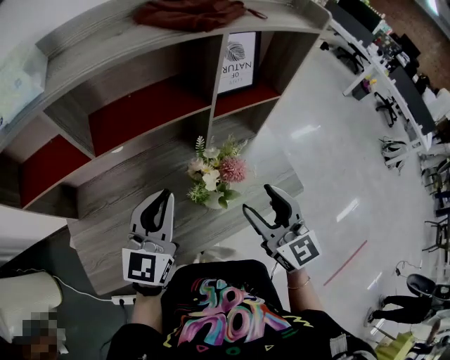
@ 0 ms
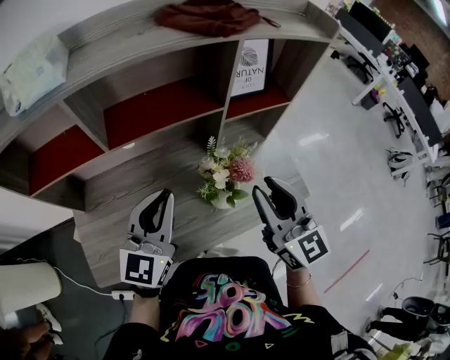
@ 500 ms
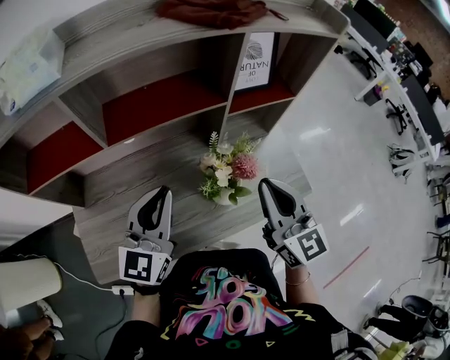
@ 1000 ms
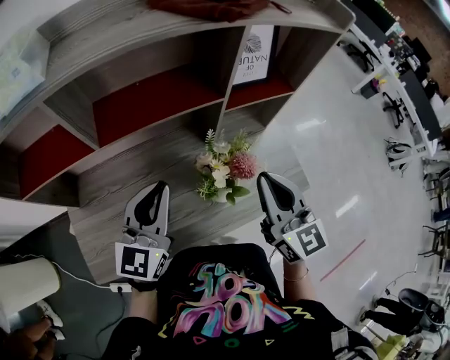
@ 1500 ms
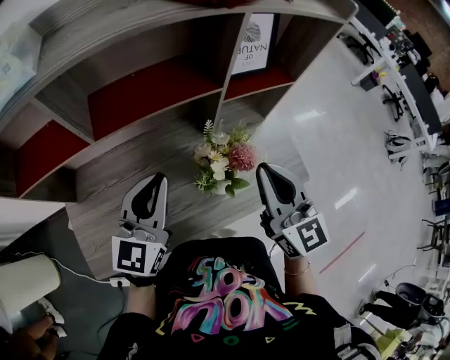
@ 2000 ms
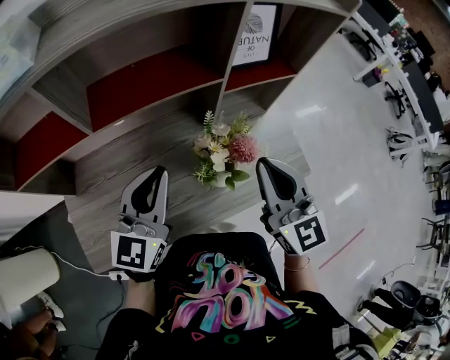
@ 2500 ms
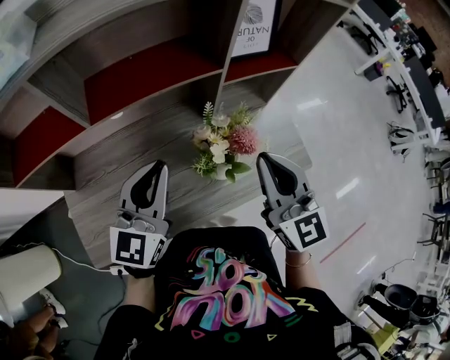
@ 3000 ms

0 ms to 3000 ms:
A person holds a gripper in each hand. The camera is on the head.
0 ms to 1500 ms: The right gripper closes its fingers.
1500 ms to 3000 ms: There are only small adjustments of the grippers.

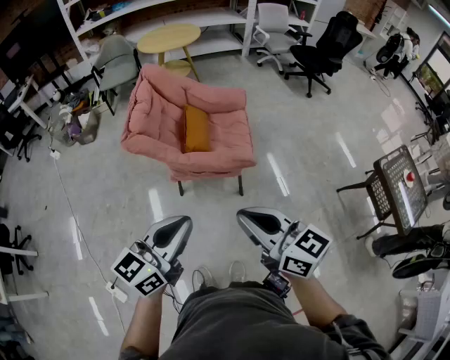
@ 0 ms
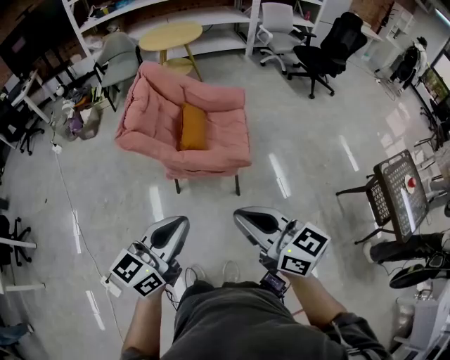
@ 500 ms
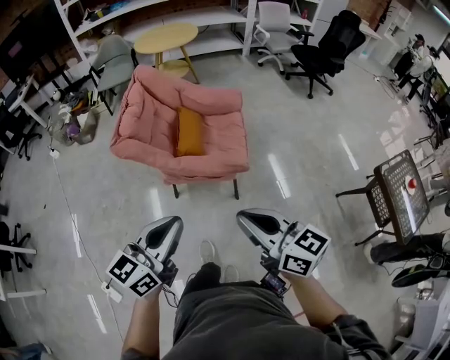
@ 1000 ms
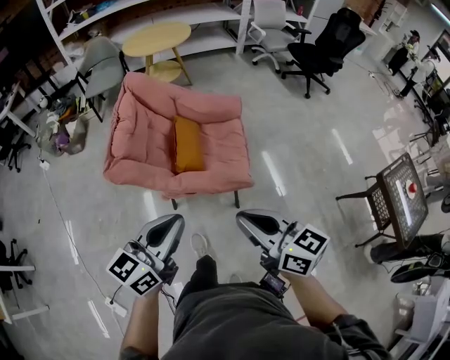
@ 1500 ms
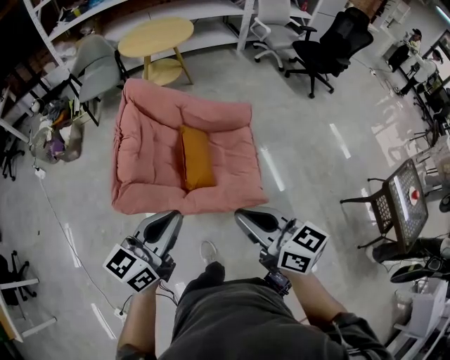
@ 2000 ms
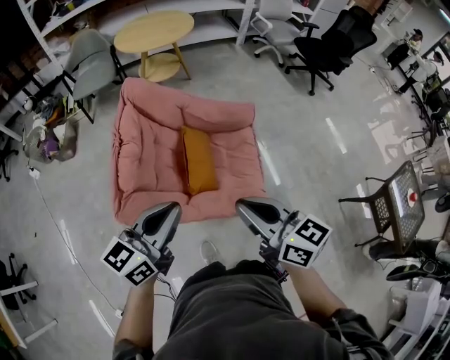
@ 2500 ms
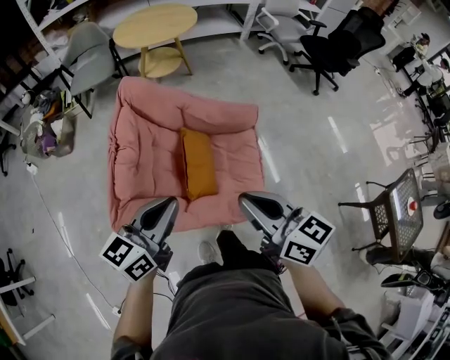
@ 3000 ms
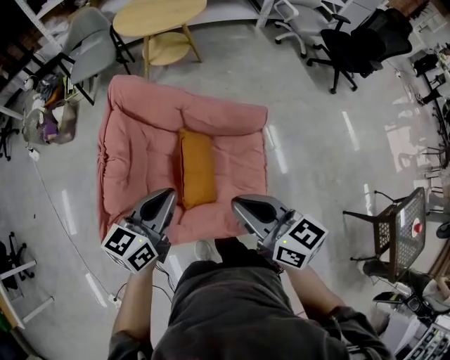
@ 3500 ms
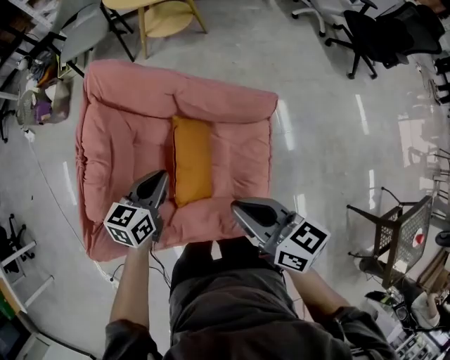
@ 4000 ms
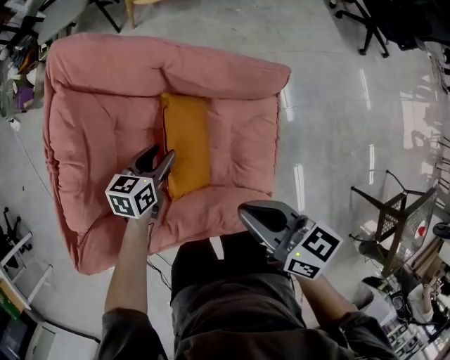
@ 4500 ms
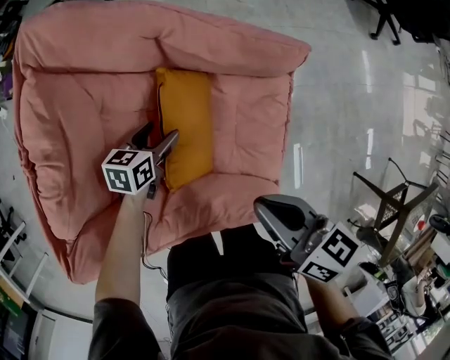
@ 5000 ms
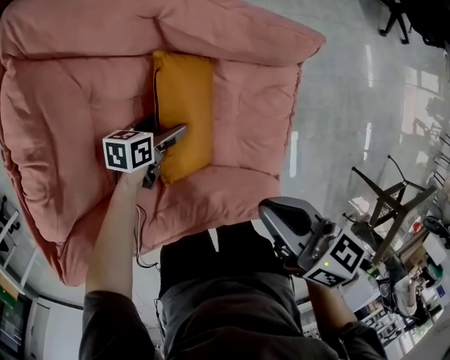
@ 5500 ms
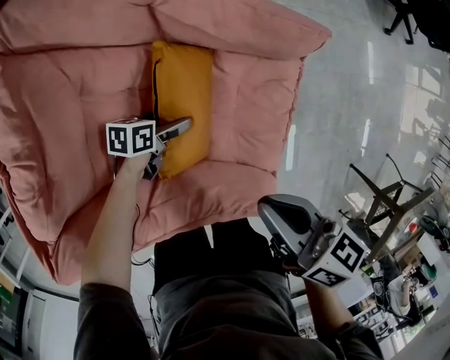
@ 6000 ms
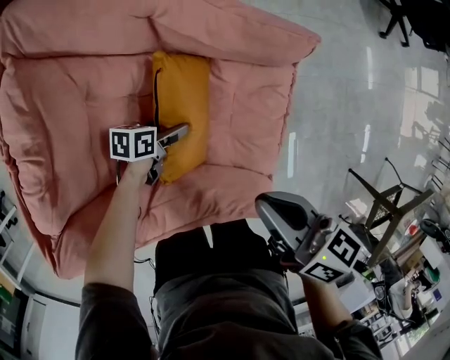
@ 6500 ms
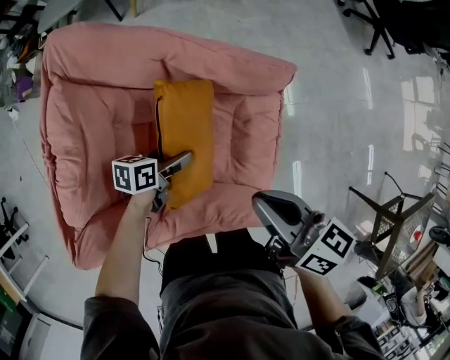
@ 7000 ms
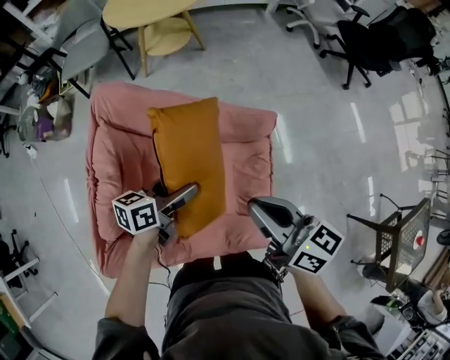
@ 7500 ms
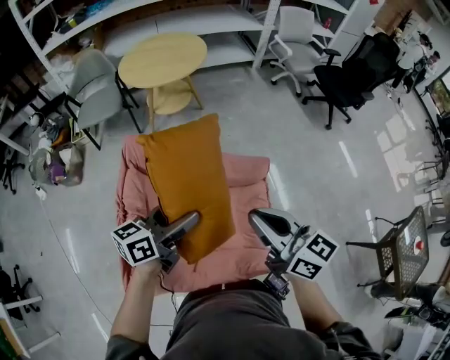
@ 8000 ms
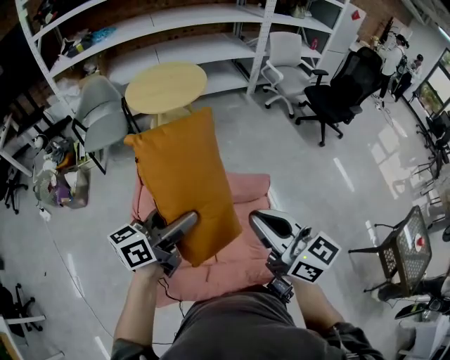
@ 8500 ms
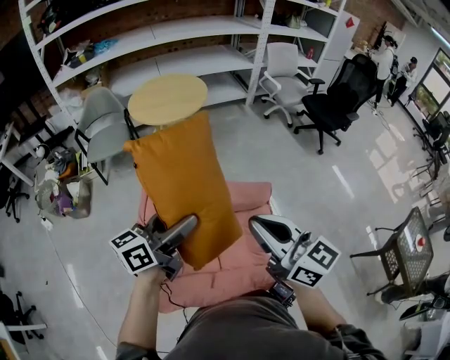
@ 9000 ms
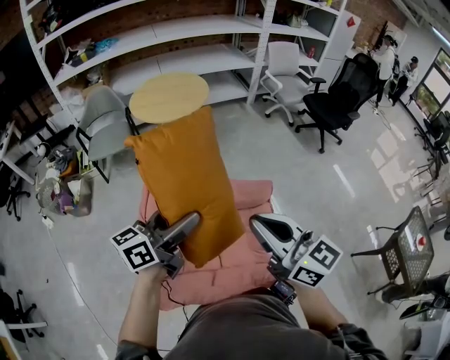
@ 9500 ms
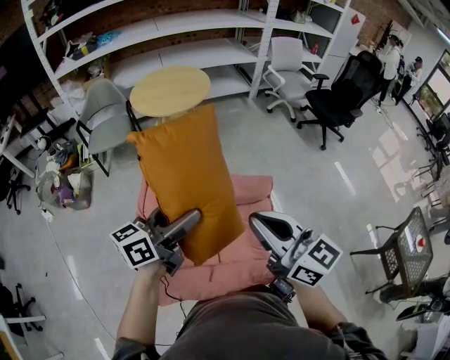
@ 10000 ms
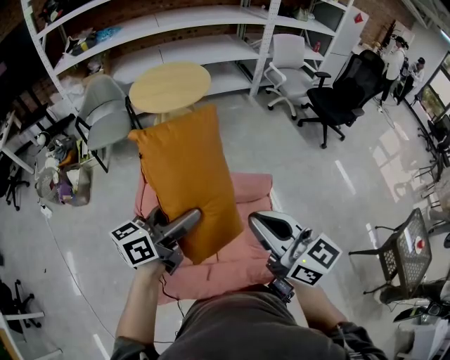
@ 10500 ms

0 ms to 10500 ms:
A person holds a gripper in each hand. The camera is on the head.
0 ms to 2000 ms: The two grippers go approximately 30 cm forward.
2000 ms to 4000 ms: Both grippers move forward and downward, about 40 cm. The left gripper changes its angle by approximately 30 degrees.
4000 ms to 6500 ms: The left gripper moves downward, some 30 cm, turns by roughly 40 degrees, and opens its fingers. Meanwhile the right gripper heads downward, covering approximately 15 cm.
6500 ms to 8500 ms: The left gripper goes approximately 60 cm upward, and tips its fingers upward by approximately 50 degrees, while the right gripper moves upward, about 40 cm, and changes its angle by roughly 40 degrees.
8500 ms to 10500 ms: There are only small adjustments of the grippers.

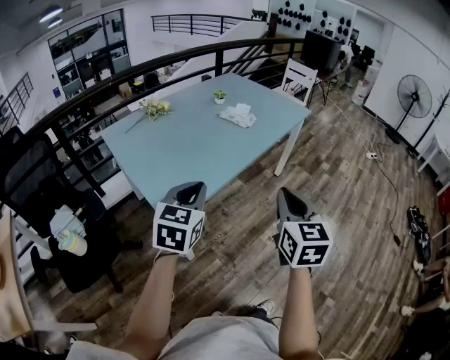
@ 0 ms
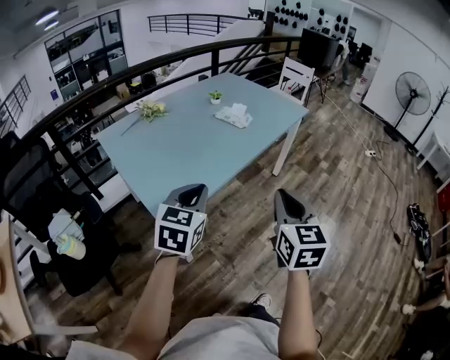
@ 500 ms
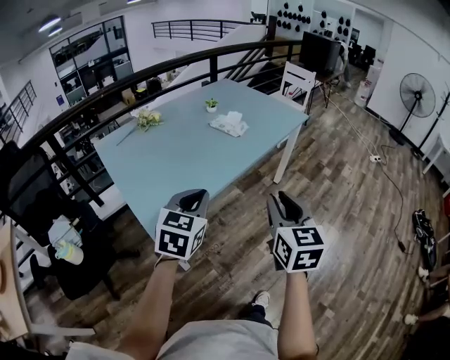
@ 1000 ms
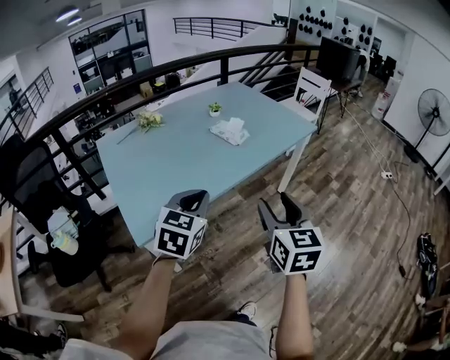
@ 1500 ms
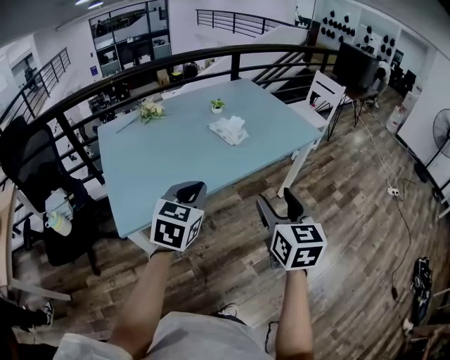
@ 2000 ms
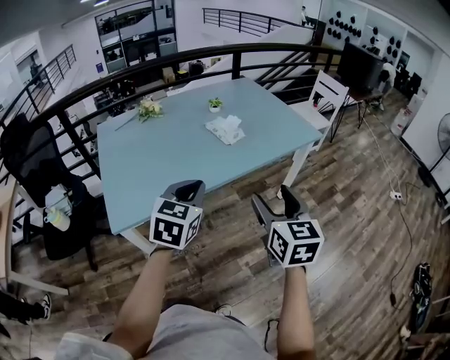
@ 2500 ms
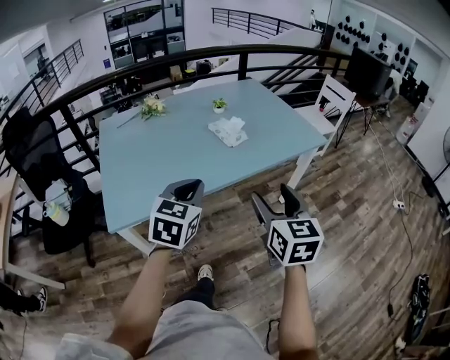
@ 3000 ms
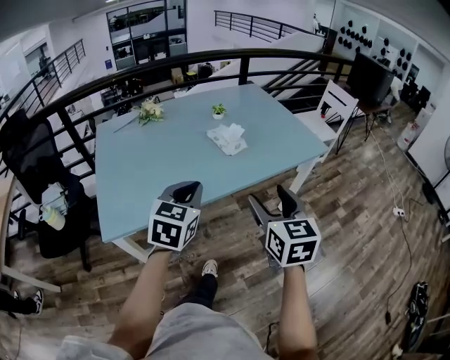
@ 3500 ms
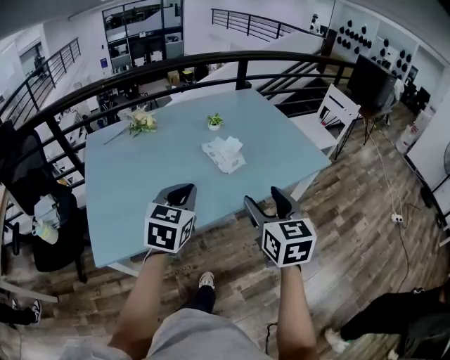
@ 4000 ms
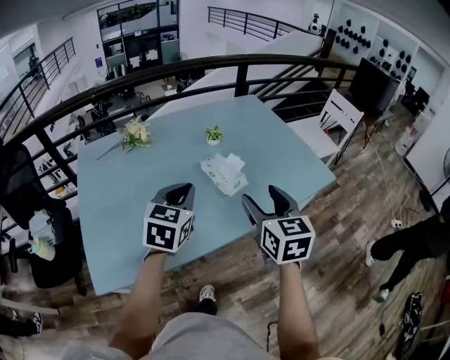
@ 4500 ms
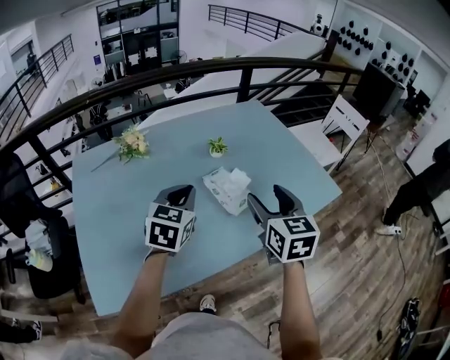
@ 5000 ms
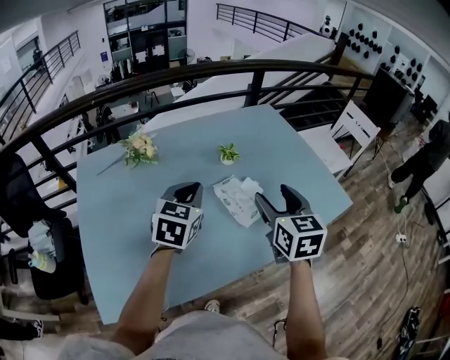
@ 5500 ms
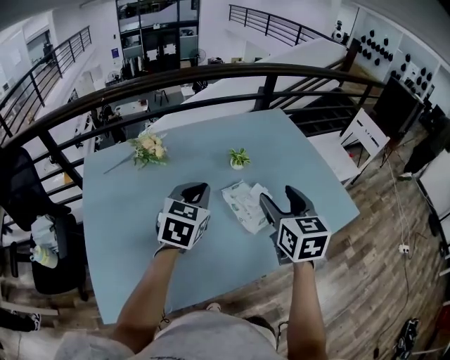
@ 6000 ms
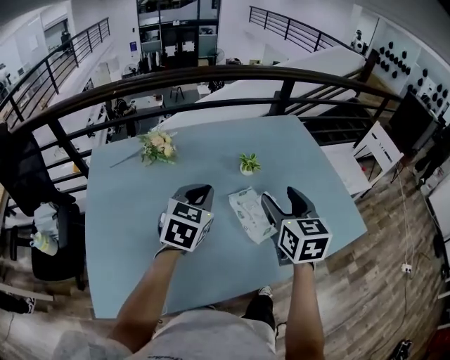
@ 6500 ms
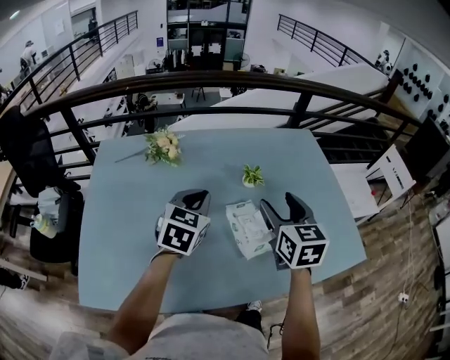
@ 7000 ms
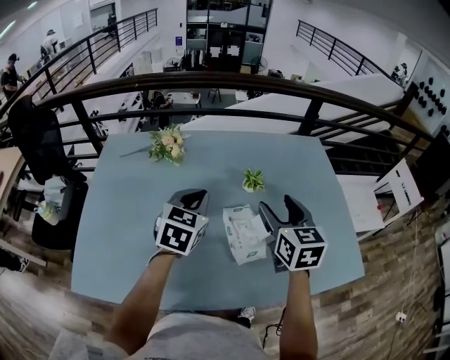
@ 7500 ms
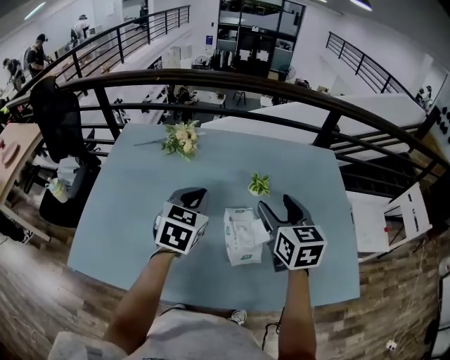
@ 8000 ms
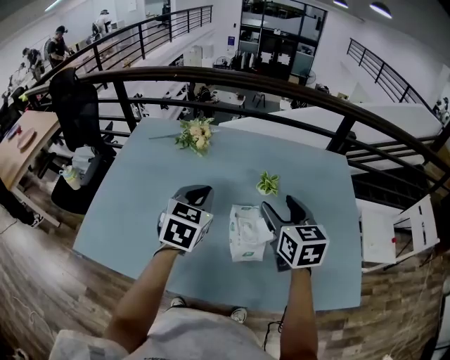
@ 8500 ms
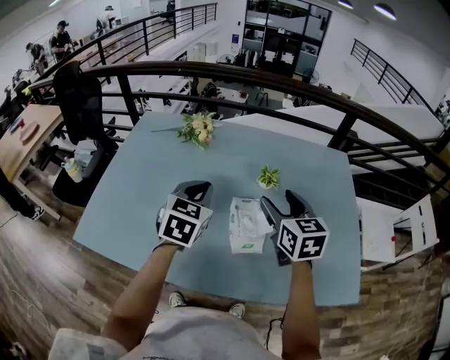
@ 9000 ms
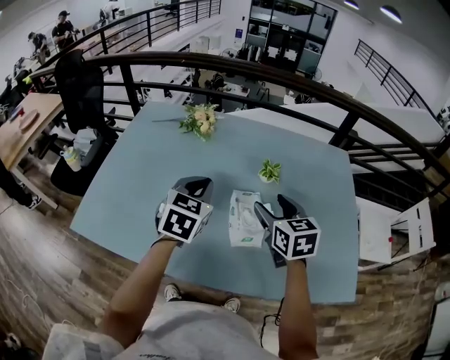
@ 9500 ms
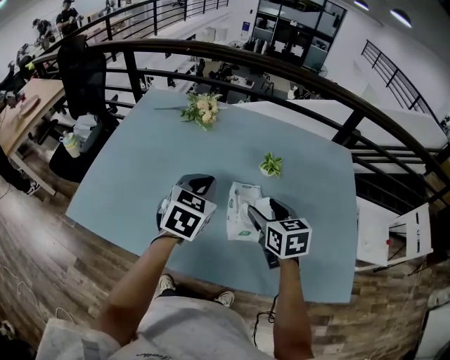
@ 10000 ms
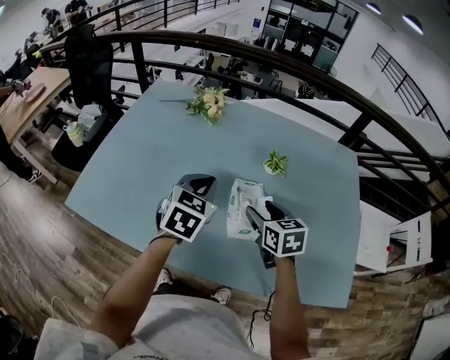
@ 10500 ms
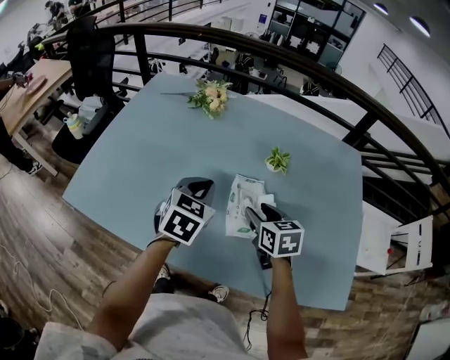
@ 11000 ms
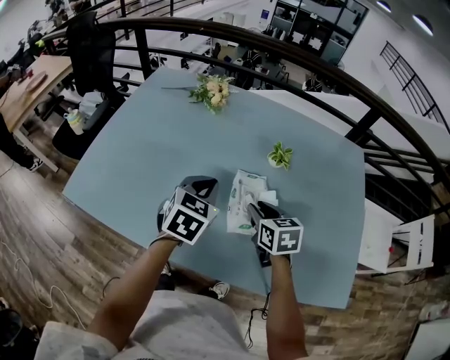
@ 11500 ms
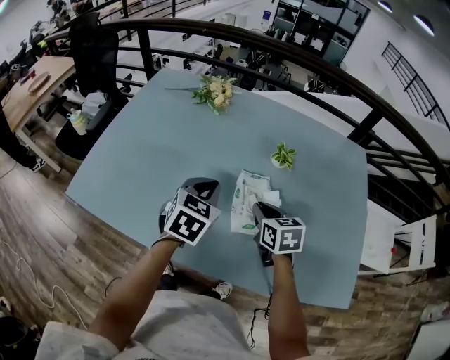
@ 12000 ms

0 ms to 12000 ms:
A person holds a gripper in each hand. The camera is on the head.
0 ms to 2000 ms: The left gripper shifts approximately 25 cm to the right and forward. Meanwhile the right gripper is displaced forward and to the right by some 25 cm, and opens its fingers.
2000 ms to 4000 ms: The two grippers go approximately 20 cm forward.
4000 ms to 6000 ms: Both grippers travel together forward, roughly 25 cm.
6000 ms to 8000 ms: The left gripper turns by about 30 degrees. The right gripper changes place by about 15 cm, and swivels about 30 degrees.
8000 ms to 10000 ms: The left gripper is displaced backward by roughly 5 cm; the right gripper is displaced downward by roughly 10 cm, and swivels about 20 degrees.
10000 ms to 12000 ms: Both grippers move downward, roughly 5 cm. The right gripper closes.

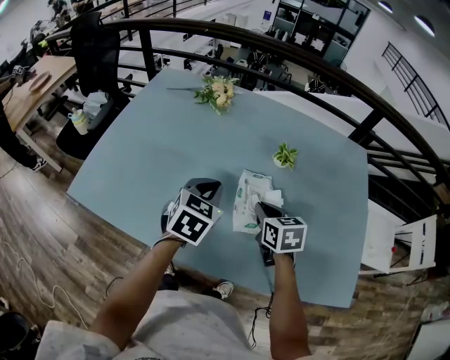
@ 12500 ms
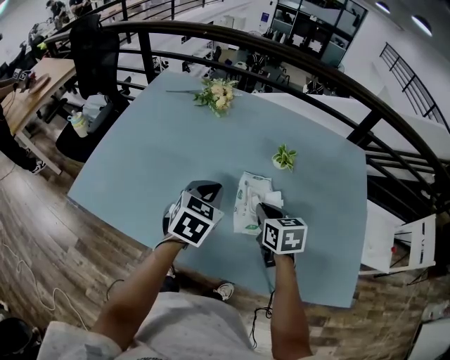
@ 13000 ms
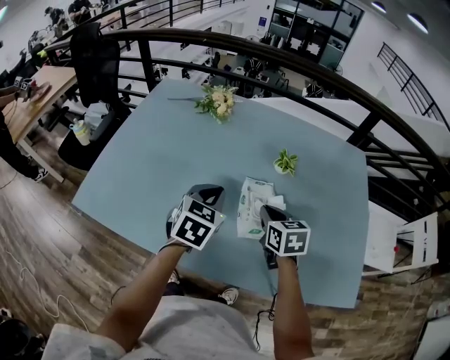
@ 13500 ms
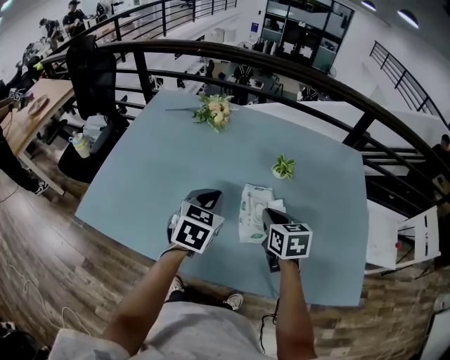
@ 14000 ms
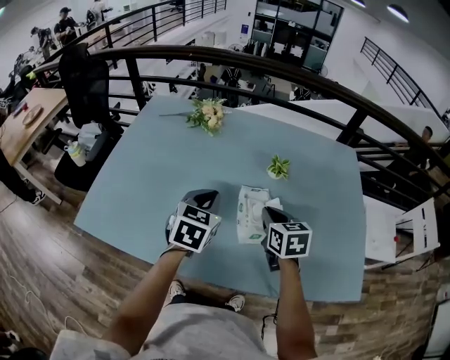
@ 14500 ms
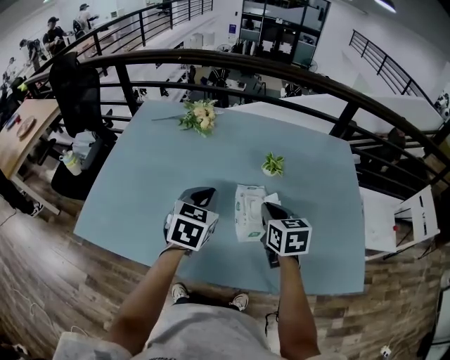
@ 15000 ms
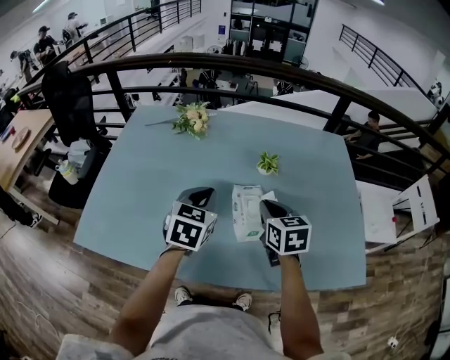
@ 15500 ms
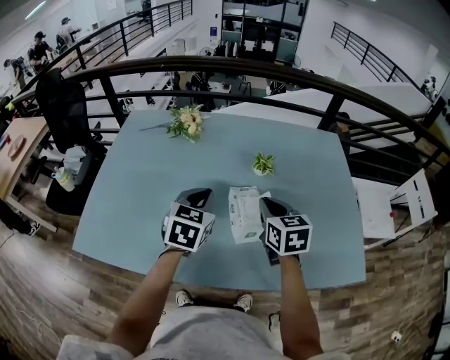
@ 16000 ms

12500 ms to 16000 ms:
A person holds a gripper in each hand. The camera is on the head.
12500 ms to 14500 ms: The grippers stay close to where they were, moving slightly.
14500 ms to 16000 ms: The right gripper moves roughly 5 cm.
